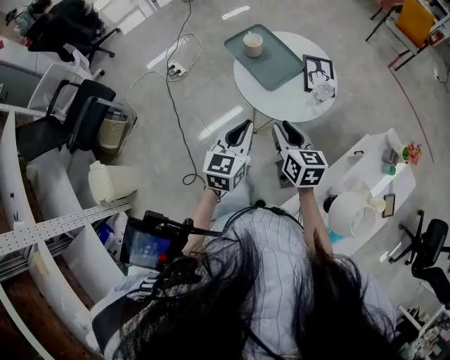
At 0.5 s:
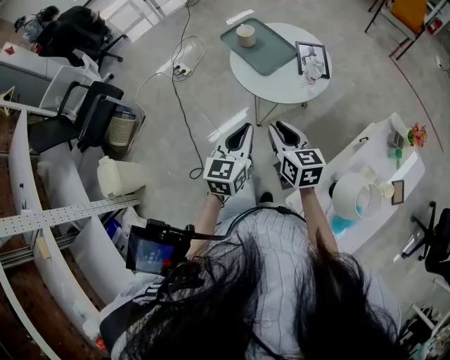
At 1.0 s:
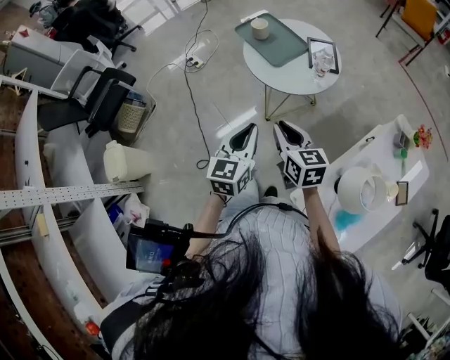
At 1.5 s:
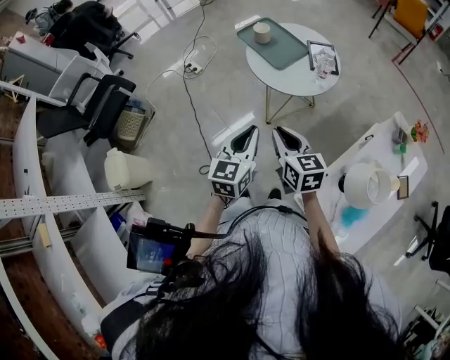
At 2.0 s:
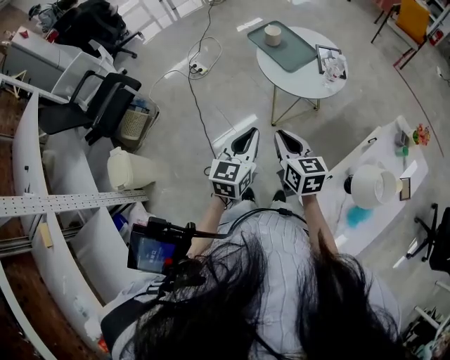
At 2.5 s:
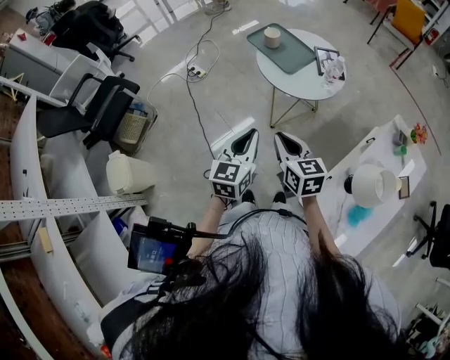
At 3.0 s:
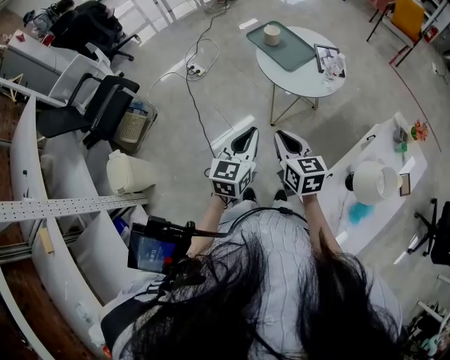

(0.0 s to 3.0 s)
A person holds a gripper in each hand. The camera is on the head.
0.0 s - 1.5 s: Both grippers travel together backward, approximately 15 cm.
1.5 s - 3.0 s: The grippers both shift to the left by some 5 cm.

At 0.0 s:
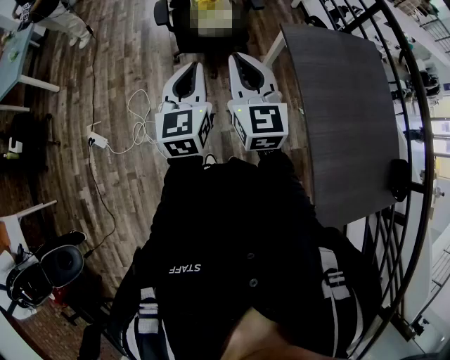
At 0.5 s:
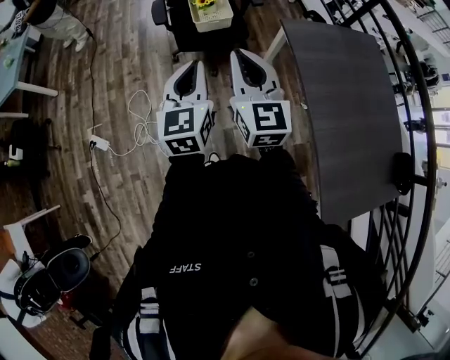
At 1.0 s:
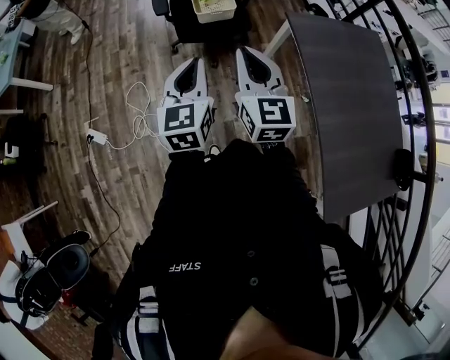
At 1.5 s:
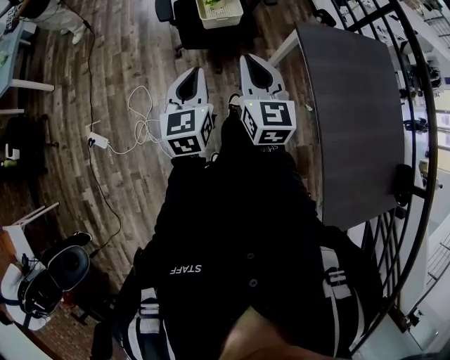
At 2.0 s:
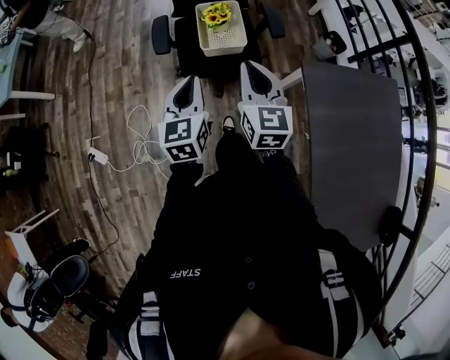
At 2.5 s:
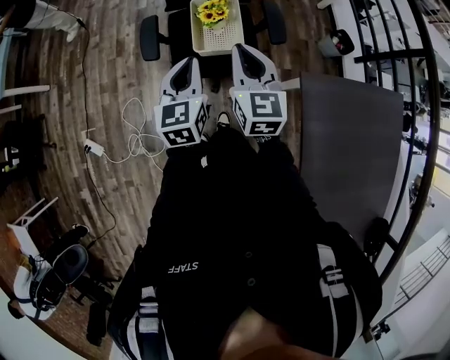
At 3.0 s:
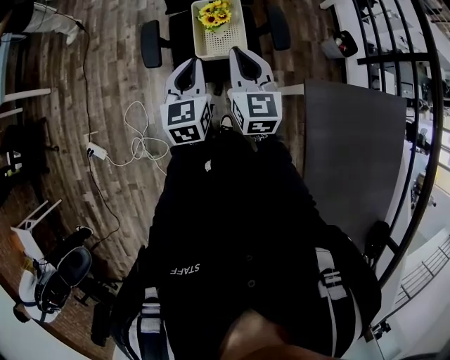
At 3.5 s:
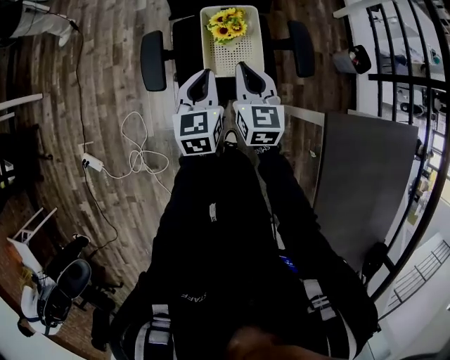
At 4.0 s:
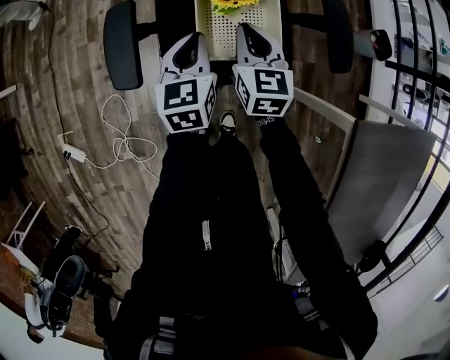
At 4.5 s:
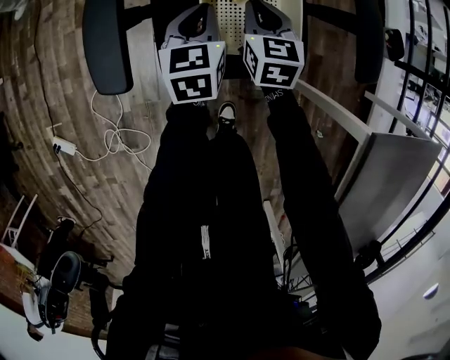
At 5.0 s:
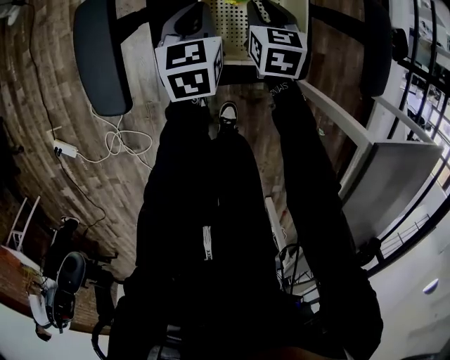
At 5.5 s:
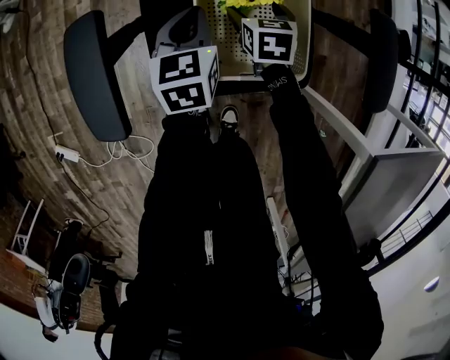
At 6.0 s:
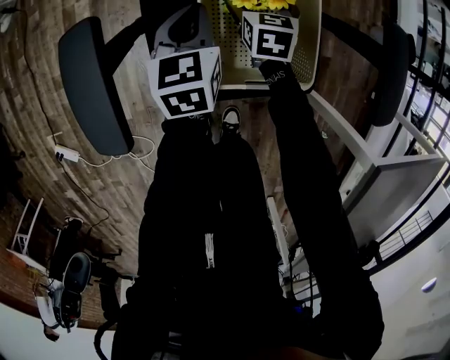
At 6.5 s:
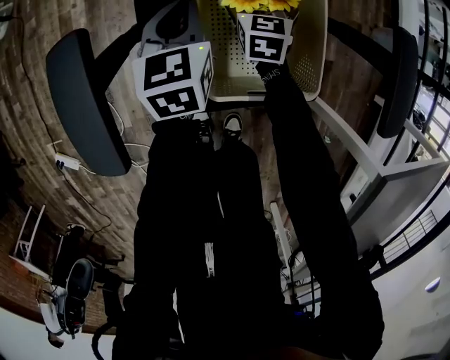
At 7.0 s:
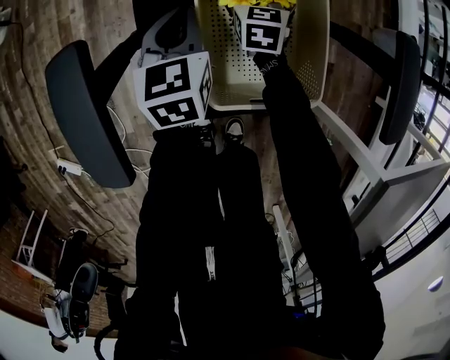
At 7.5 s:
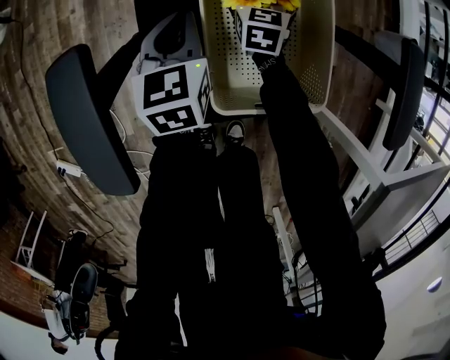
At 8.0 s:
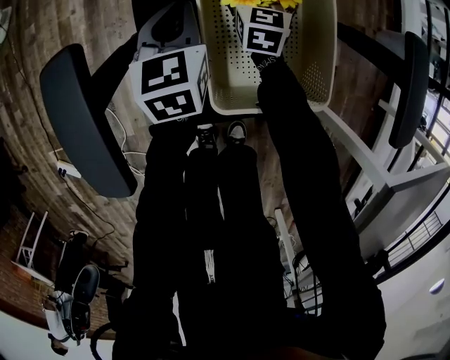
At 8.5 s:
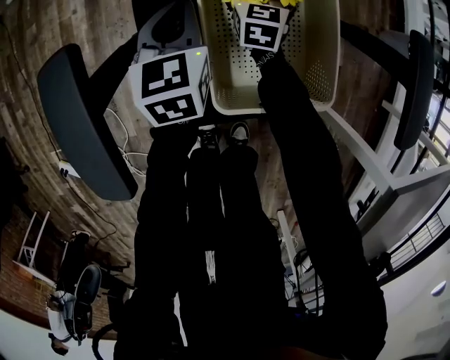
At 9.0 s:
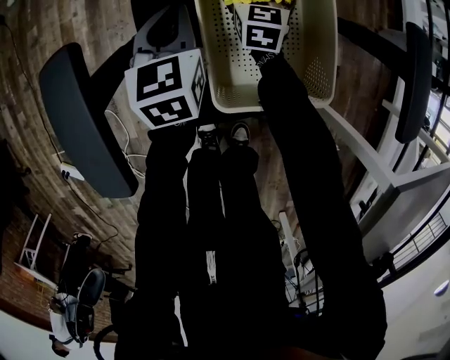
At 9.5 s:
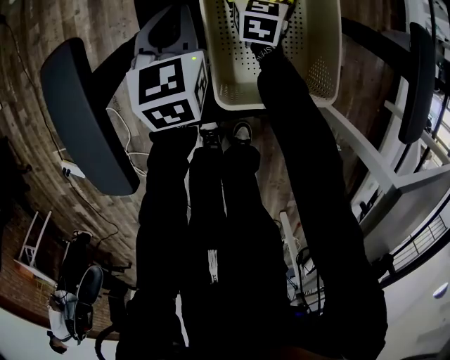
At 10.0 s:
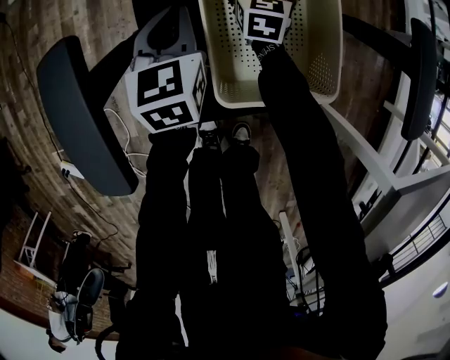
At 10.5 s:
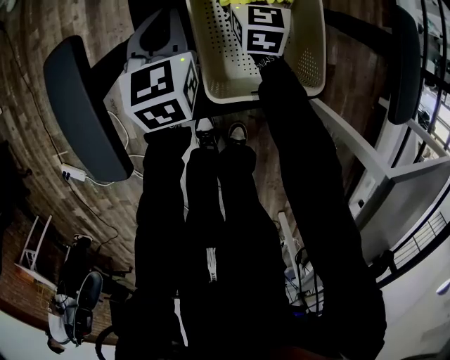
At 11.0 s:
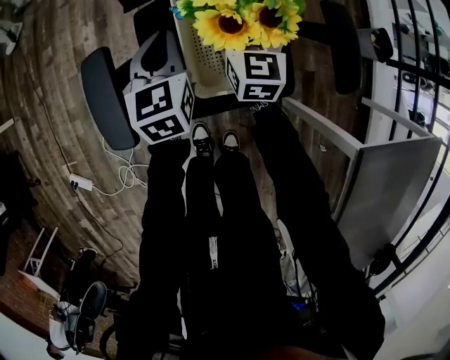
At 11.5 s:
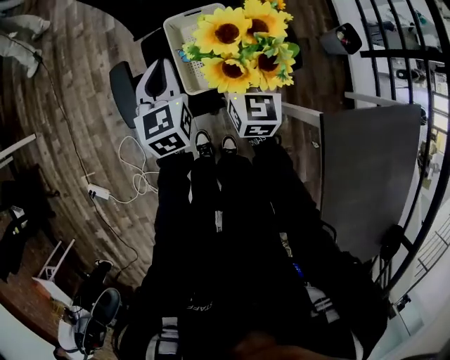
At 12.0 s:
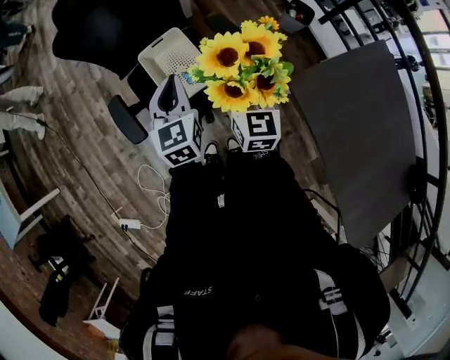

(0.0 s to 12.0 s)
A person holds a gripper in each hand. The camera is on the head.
0.0 s - 2.0 s: The grippers both shift forward by about 30 cm.
2.0 s - 4.0 s: The left gripper is displaced forward and downward by about 50 cm, while the right gripper shifts approximately 50 cm downward and forward.
4.0 s - 6.0 s: The grippers both shift downward and forward by about 25 cm. The right gripper rotates some 20 degrees, and opens.
6.0 s - 8.0 s: The left gripper changes place by about 5 cm. Meanwhile the right gripper is displaced forward by roughly 5 cm.
8.0 s - 10.0 s: The grippers stay close to where they were, moving slightly.
10.0 s - 12.0 s: The left gripper is displaced upward by some 50 cm, and swivels about 20 degrees, while the right gripper is displaced upward and backward by some 70 cm, and changes its angle by approximately 30 degrees.

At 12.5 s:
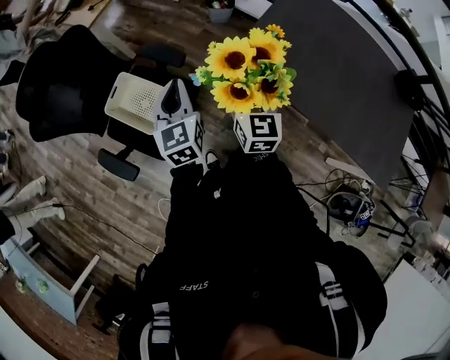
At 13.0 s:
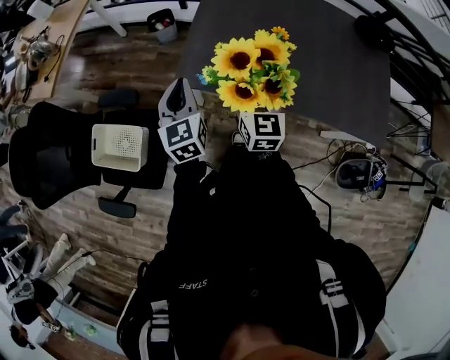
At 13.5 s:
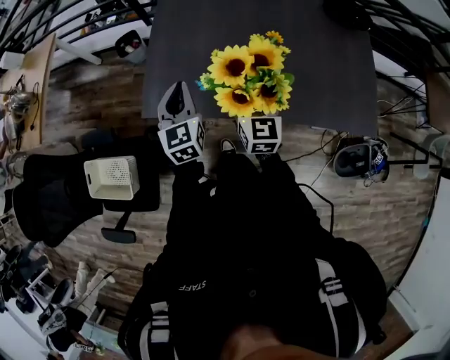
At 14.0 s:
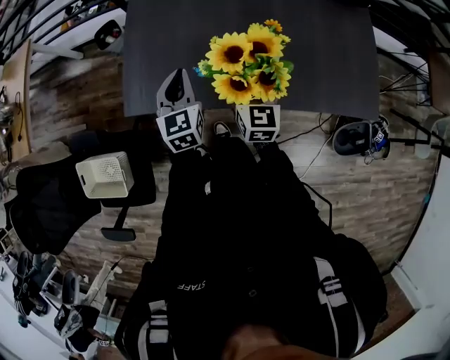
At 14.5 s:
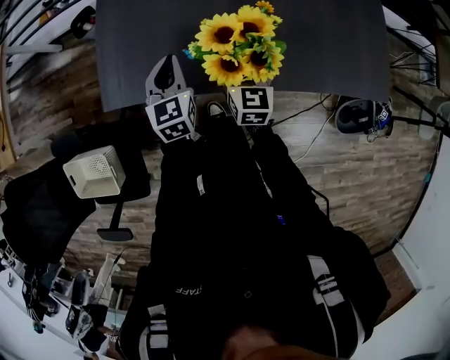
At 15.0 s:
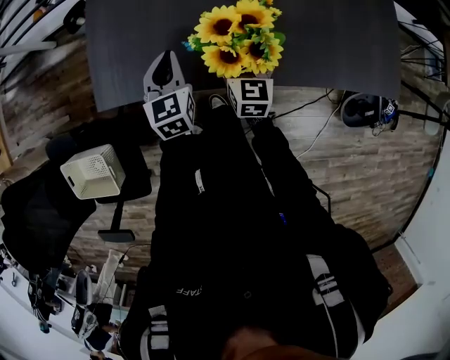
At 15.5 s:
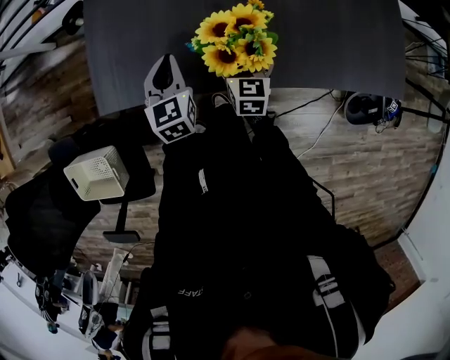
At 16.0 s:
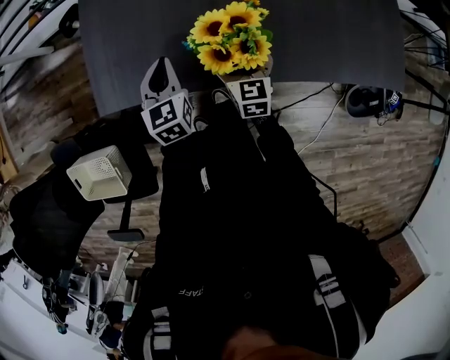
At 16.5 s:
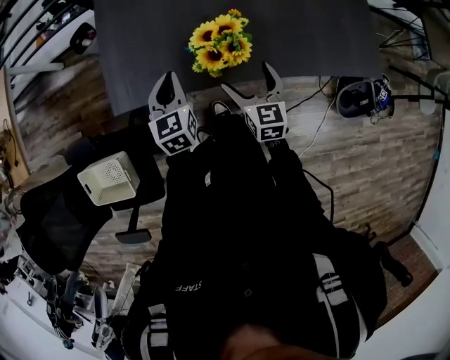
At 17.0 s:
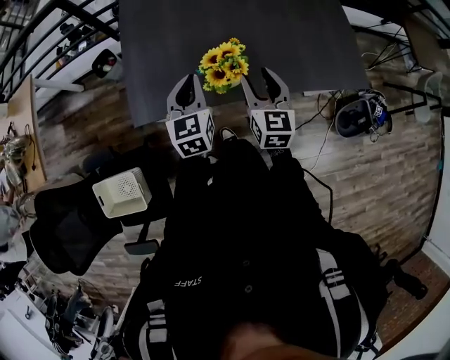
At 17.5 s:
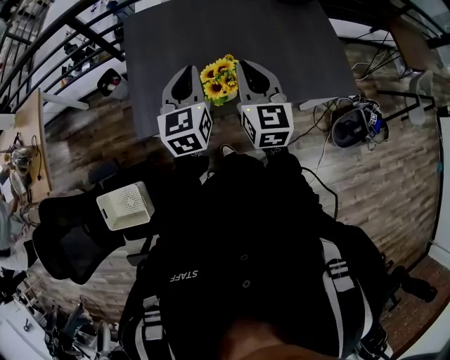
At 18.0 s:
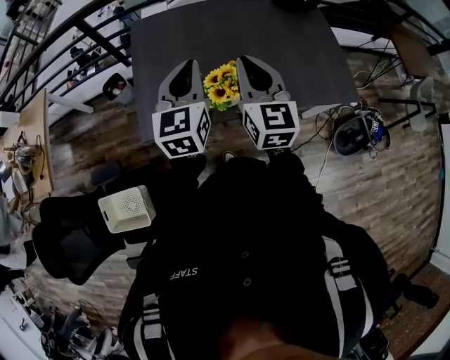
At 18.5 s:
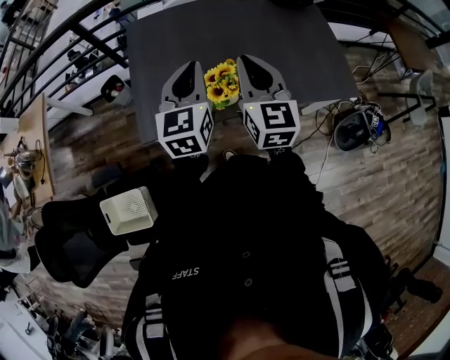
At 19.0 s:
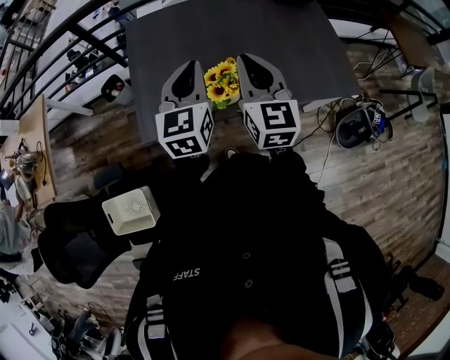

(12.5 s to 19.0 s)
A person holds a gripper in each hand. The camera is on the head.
12.5 s - 14.5 s: The pair of grippers is taken approximately 40 cm. The left gripper rotates some 40 degrees. Meanwhile the right gripper swivels roughly 40 degrees.
14.5 s - 17.0 s: The left gripper moves upward, approximately 15 cm. Meanwhile the right gripper goes some 20 cm upward and backward, and closes.
17.0 s - 19.0 s: Both grippers travel together upward, approximately 15 cm. The right gripper closes its fingers.

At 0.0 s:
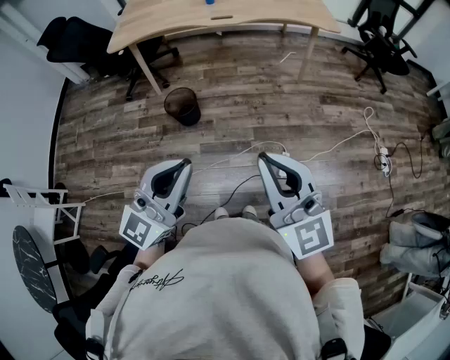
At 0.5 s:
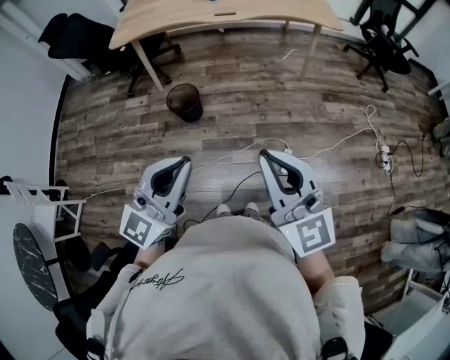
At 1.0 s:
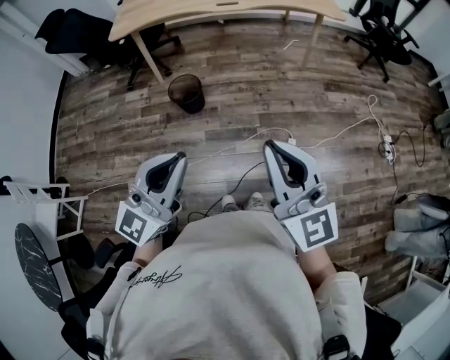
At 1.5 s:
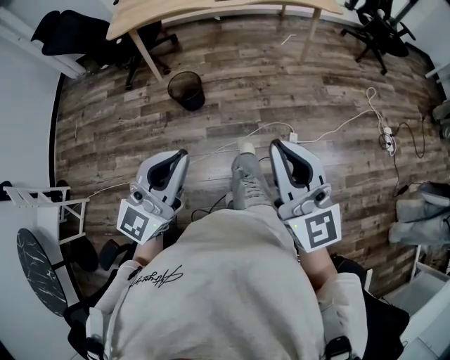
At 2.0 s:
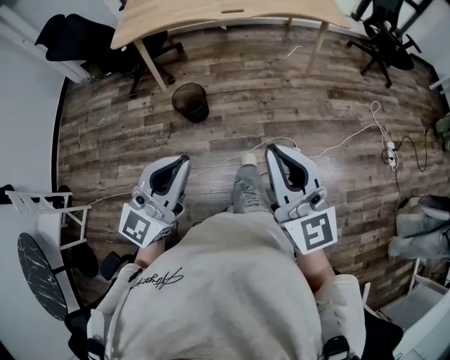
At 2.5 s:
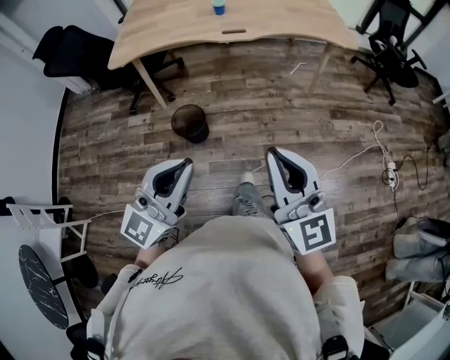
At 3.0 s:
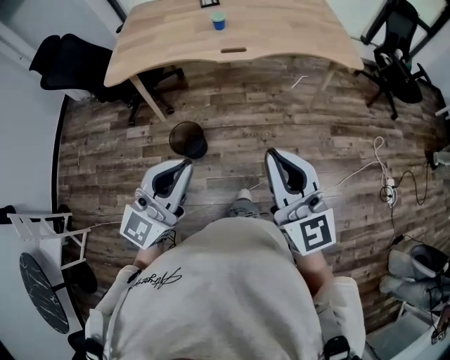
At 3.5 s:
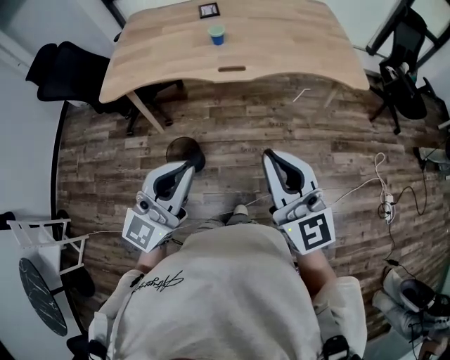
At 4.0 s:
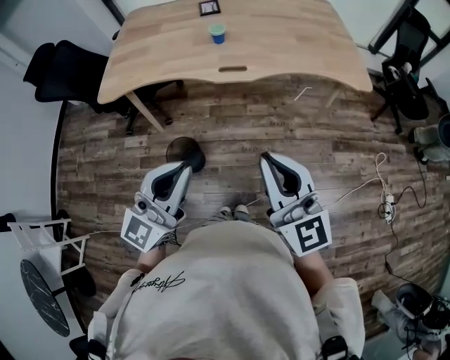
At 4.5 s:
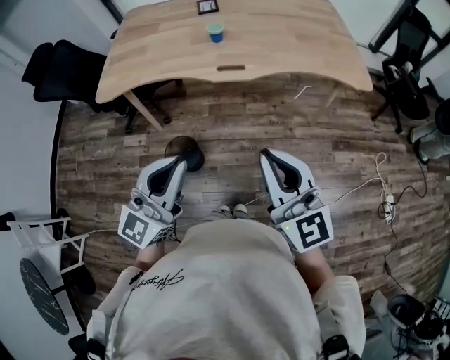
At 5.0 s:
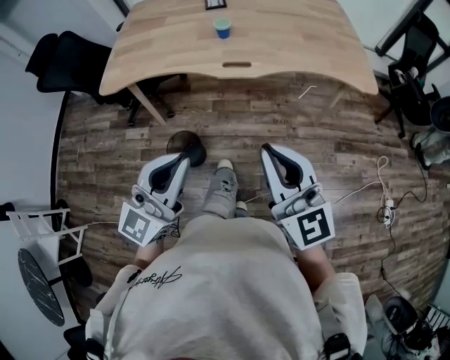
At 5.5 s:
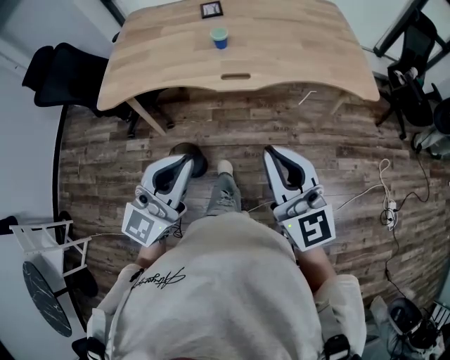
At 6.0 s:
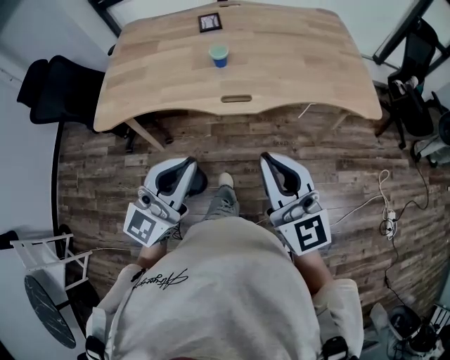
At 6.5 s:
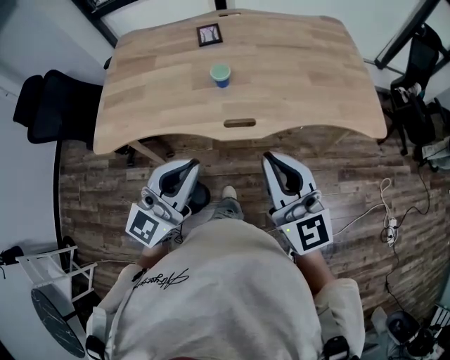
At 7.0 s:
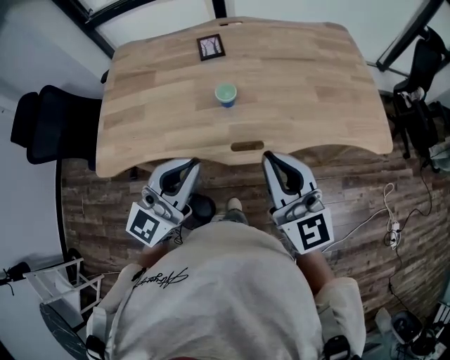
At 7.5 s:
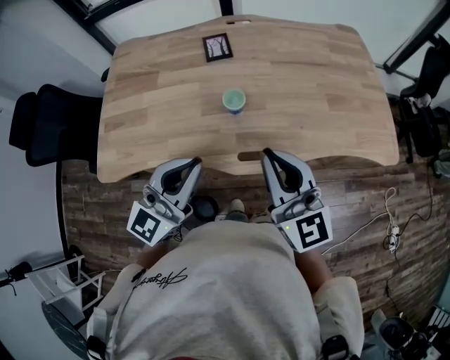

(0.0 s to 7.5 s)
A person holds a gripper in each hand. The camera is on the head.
0.0 s - 2.0 s: Both grippers travel together to the left, approximately 5 cm.
2.0 s - 4.0 s: The two grippers go about 35 cm forward.
4.0 s - 5.5 s: Both grippers move forward, approximately 5 cm.
5.5 s - 7.5 s: Both grippers move forward, about 30 cm.
